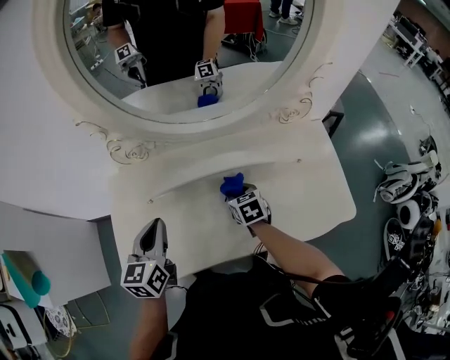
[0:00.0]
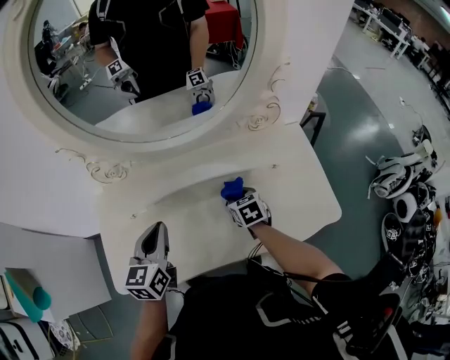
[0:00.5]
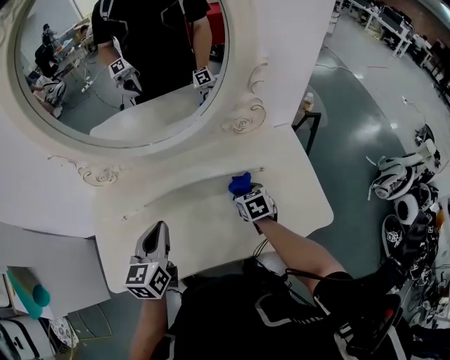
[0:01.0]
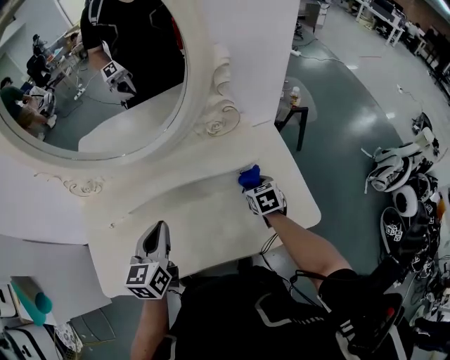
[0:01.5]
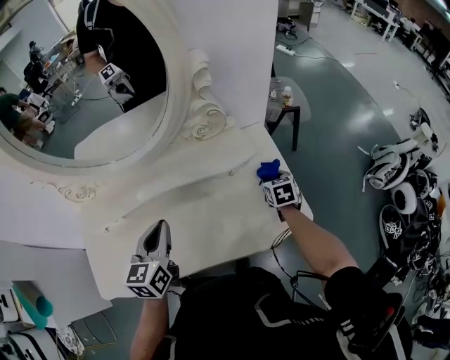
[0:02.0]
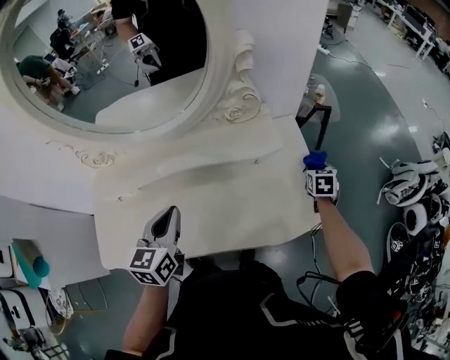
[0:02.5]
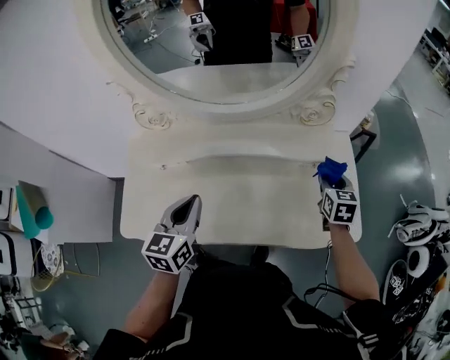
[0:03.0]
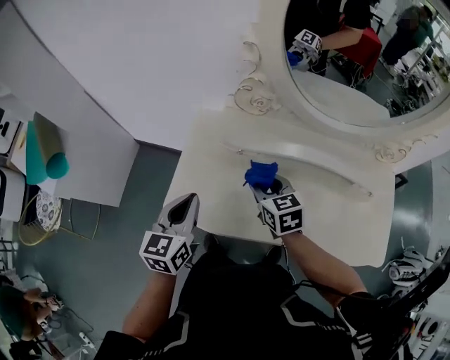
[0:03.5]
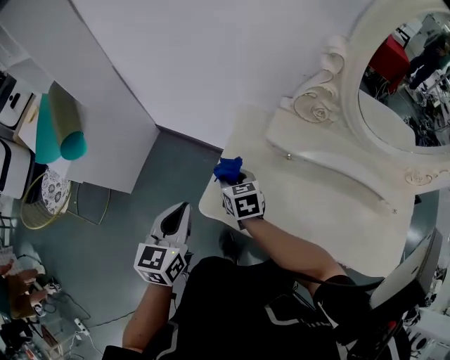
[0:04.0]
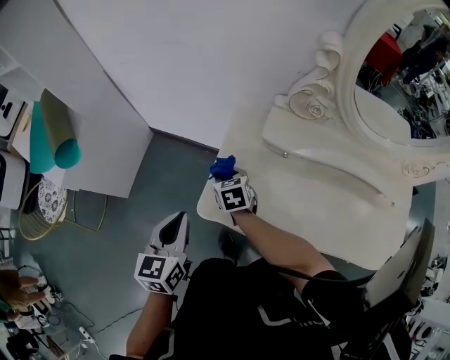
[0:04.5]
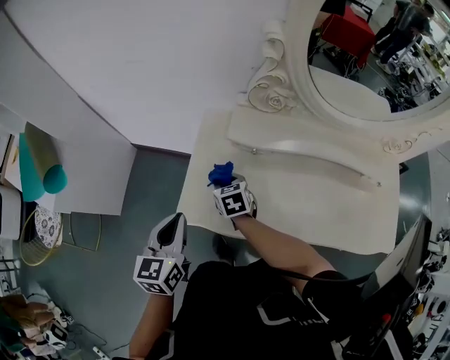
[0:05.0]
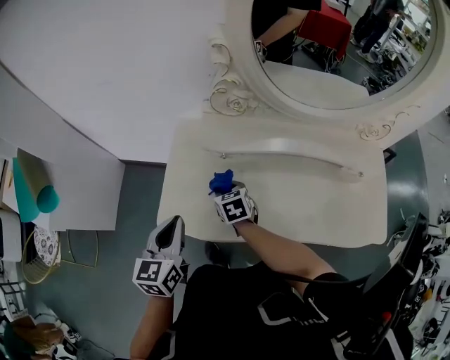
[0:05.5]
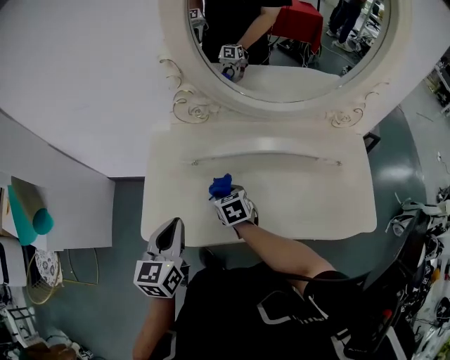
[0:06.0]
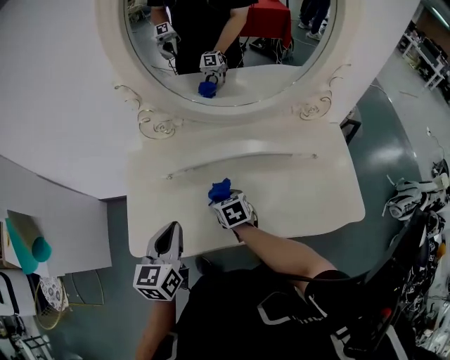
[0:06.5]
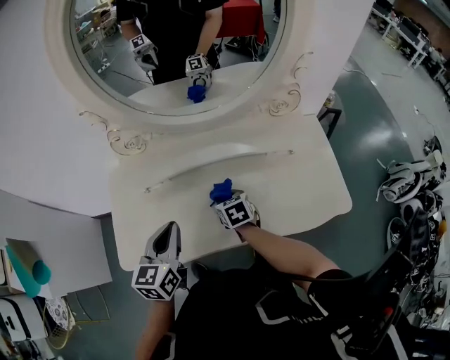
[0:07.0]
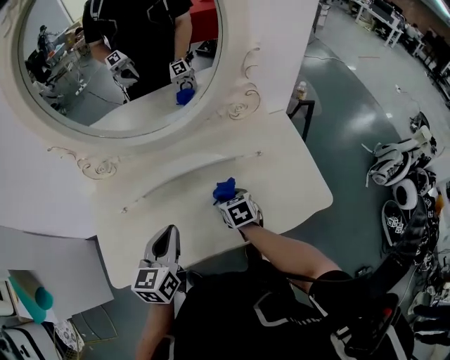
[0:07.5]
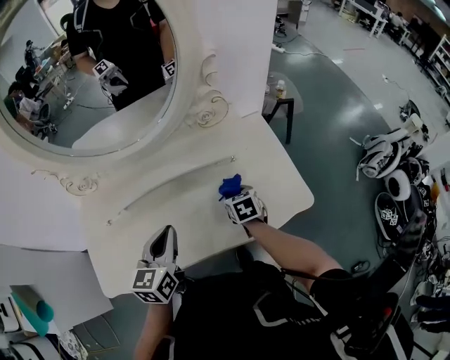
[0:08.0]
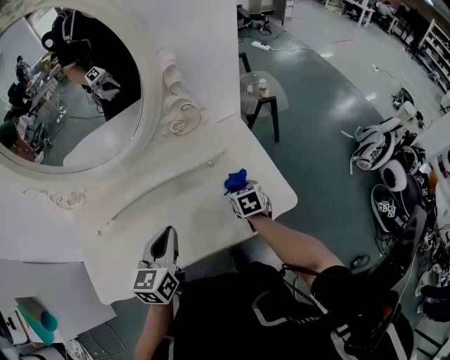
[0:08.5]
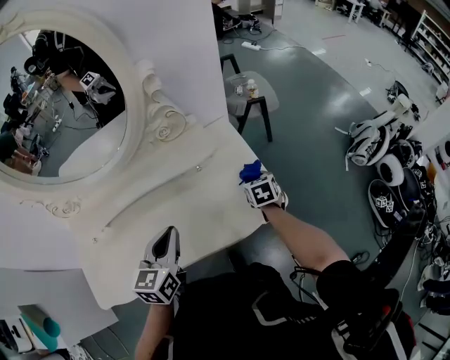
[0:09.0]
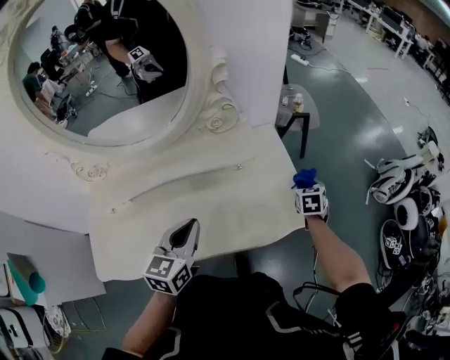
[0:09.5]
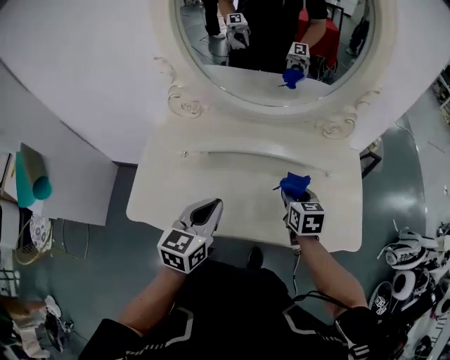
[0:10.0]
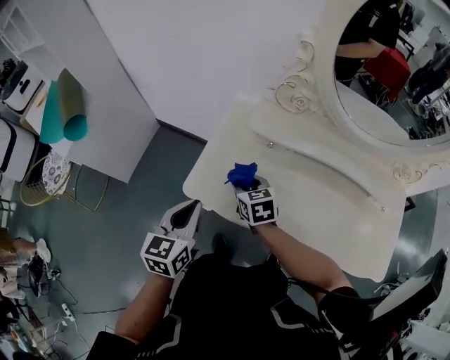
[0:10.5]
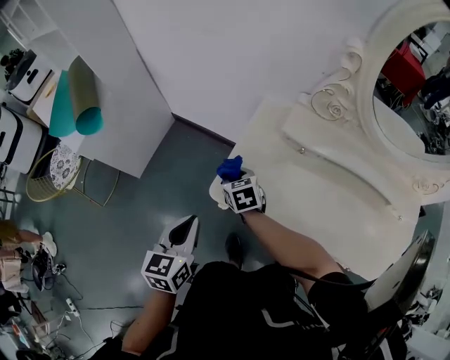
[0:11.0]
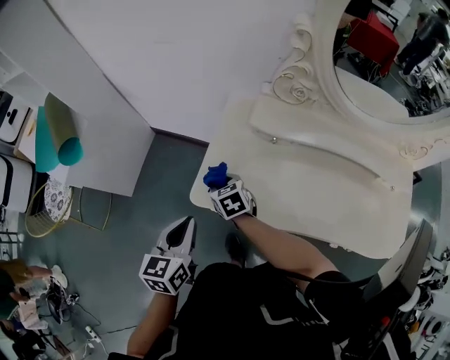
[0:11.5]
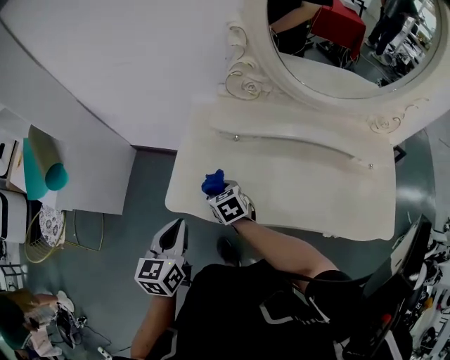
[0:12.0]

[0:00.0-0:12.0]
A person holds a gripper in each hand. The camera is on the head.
0:00.0 to 0:02.0: The left gripper shifts some 25 cm to the right, while the right gripper shifts about 40 cm to the right.
0:02.0 to 0:04.0: The two grippers travel together, roughly 70 cm. The right gripper changes its angle by approximately 50 degrees, while the left gripper rotates approximately 30 degrees.
0:04.0 to 0:06.0: Both grippers move to the right, about 25 cm.
0:06.0 to 0:08.0: The grippers both shift to the right by roughly 35 cm. The right gripper rotates some 30 degrees. Meanwhile the left gripper changes its angle by approximately 20 degrees.
0:08.0 to 0:10.0: The left gripper ends up roughly 10 cm from where it was.
0:10.0 to 0:12.0: The right gripper ends up about 50 cm from where it was, and rotates approximately 30 degrees; the left gripper changes place by about 30 cm, and turns by approximately 20 degrees.

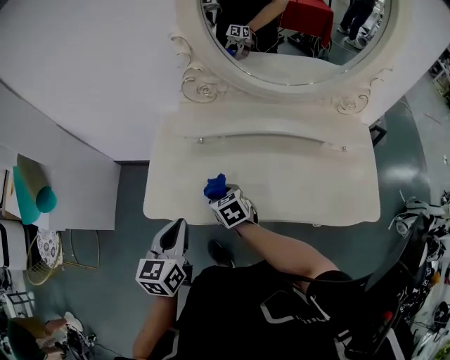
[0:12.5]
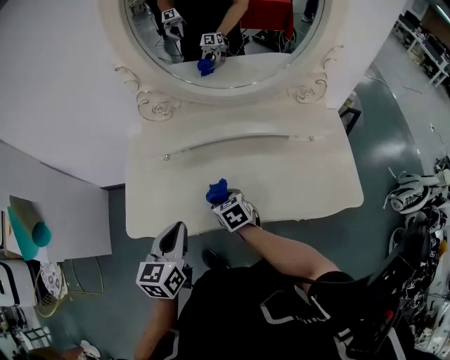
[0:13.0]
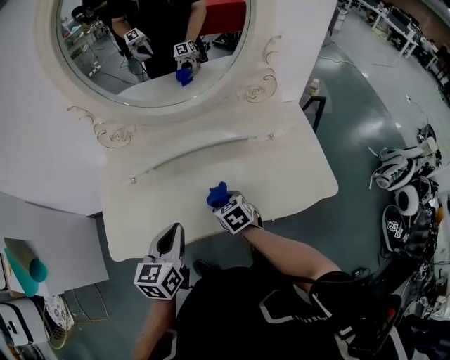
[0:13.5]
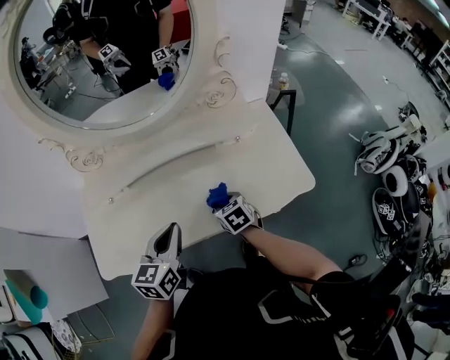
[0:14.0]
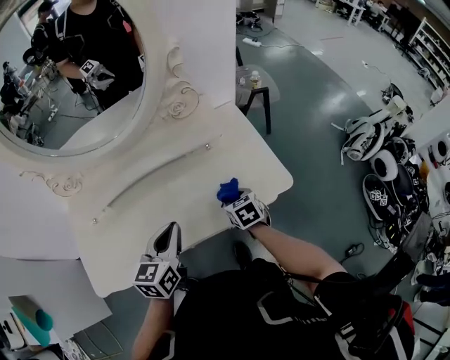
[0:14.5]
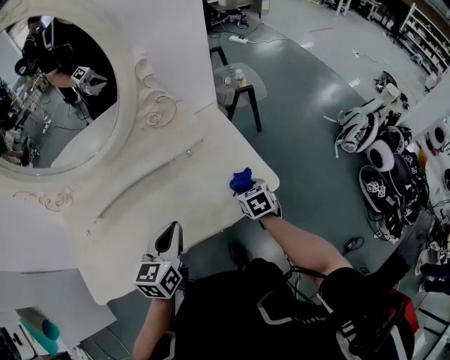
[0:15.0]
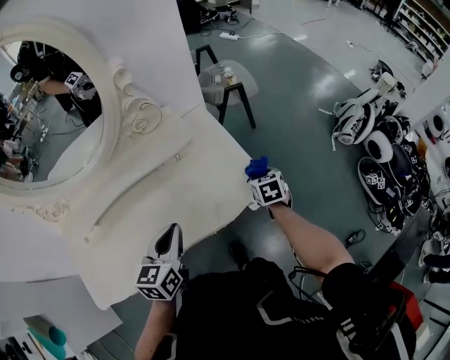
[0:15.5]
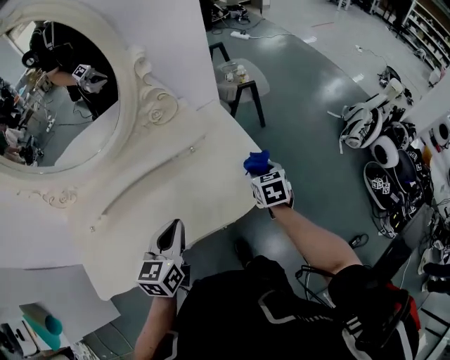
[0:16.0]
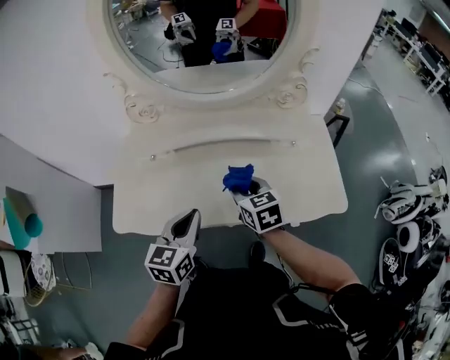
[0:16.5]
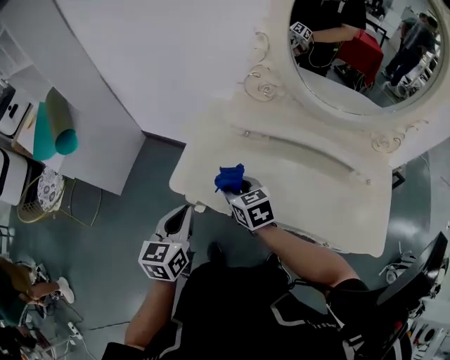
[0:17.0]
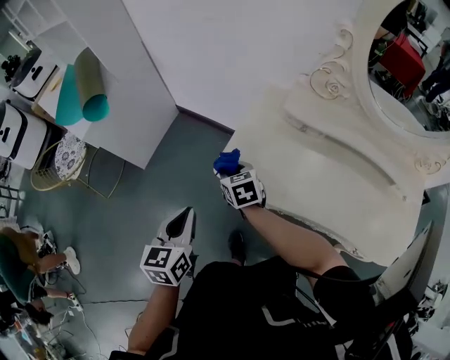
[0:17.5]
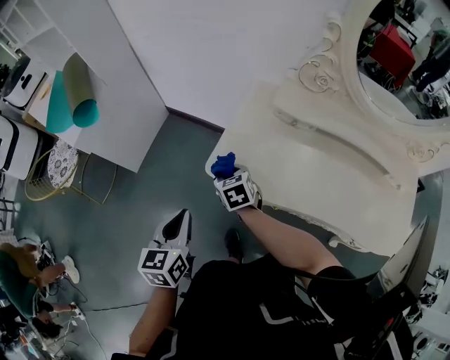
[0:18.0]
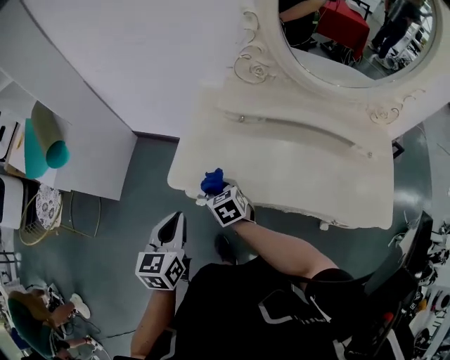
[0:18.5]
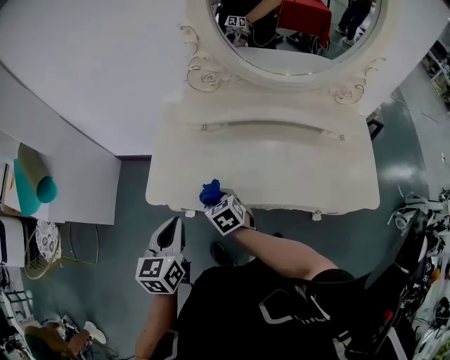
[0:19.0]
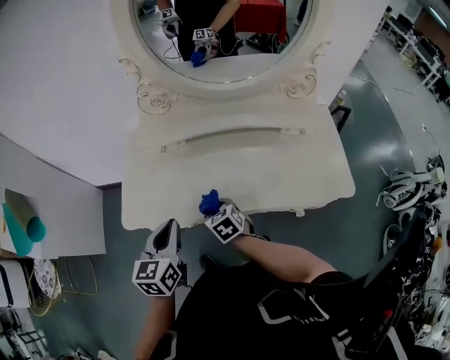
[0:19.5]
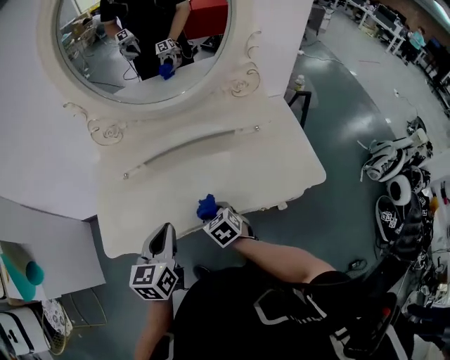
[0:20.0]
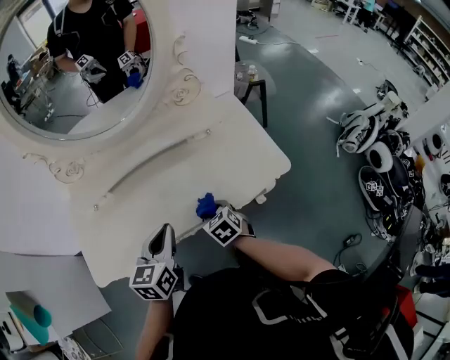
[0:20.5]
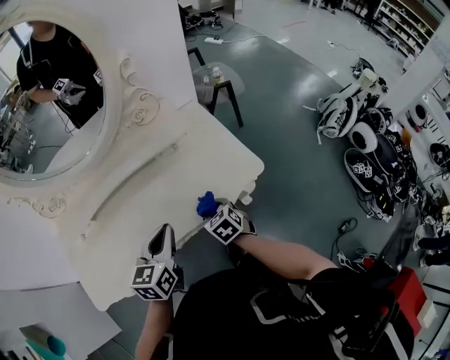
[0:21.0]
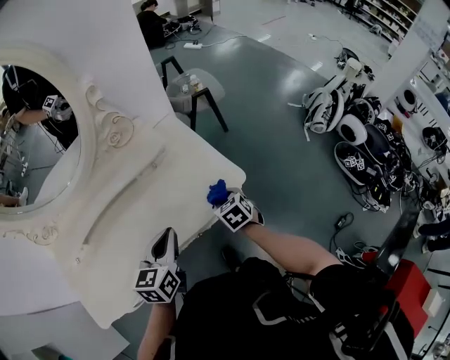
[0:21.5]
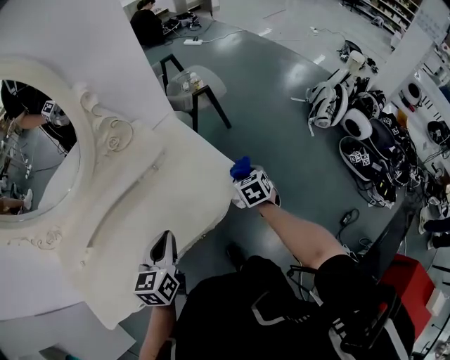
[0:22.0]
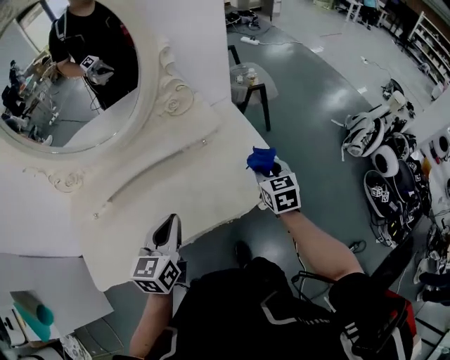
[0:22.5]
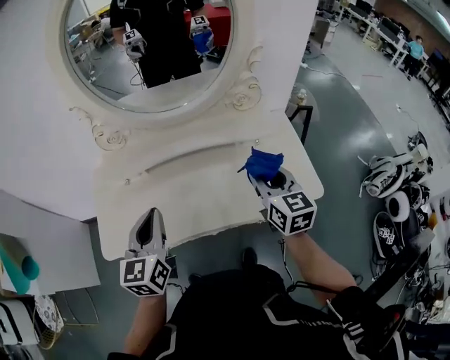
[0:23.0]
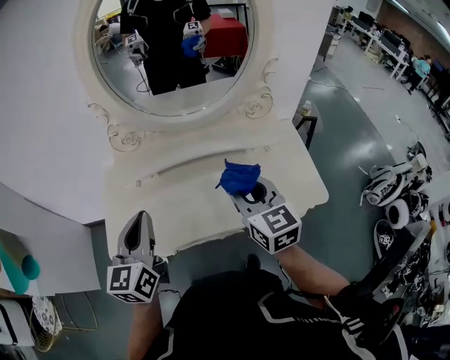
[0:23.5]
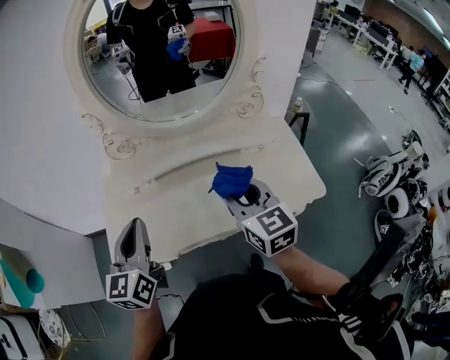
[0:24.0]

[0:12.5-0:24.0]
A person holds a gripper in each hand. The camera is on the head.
0:12.5 to 0:14.5: The left gripper moves some 35 cm, and changes its angle by about 30 degrees; the right gripper shifts by roughly 50 cm, and turns by roughly 40 degrees.
0:14.5 to 0:16.5: The left gripper ends up roughly 15 cm from where it was. Meanwhile the right gripper shifts by approximately 25 cm, and rotates some 20 degrees.
0:16.5 to 0:18.5: The left gripper shifts by approximately 35 cm, and swivels roughly 30 degrees. Meanwhile the right gripper moves approximately 40 cm, and changes its angle by roughly 30 degrees.
0:18.5 to 0:20.0: Both grippers move to the right, approximately 30 cm. The right gripper changes its angle by roughly 20 degrees, while the left gripper swivels roughly 30 degrees.
0:20.0 to 0:22.0: The left gripper shifts by approximately 30 cm, and changes its angle by roughly 30 degrees; the right gripper changes place by roughly 50 cm, and swivels roughly 40 degrees.
0:22.0 to 0:24.0: The left gripper moves about 40 cm, and rotates some 40 degrees, while the right gripper changes place by some 50 cm, and angles its fingers upward, by some 40 degrees.

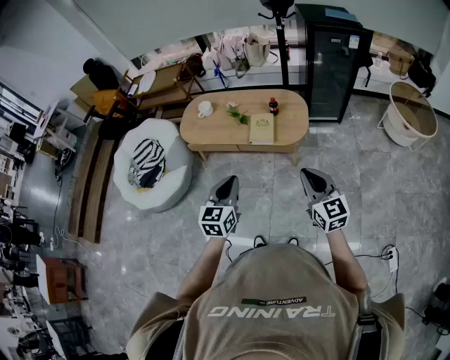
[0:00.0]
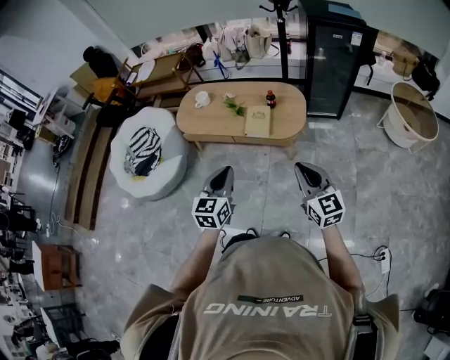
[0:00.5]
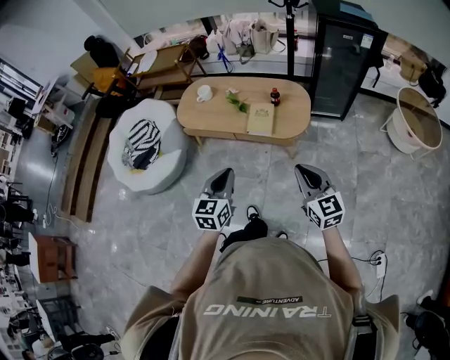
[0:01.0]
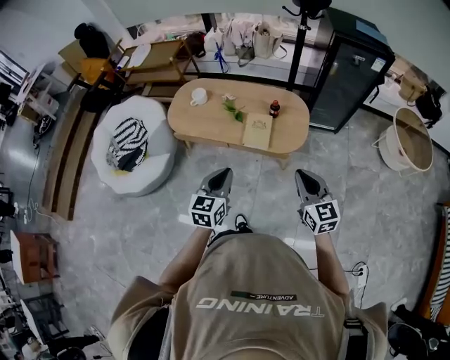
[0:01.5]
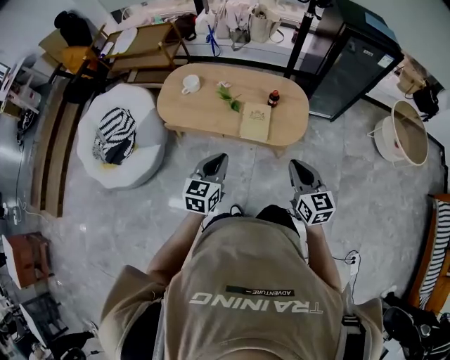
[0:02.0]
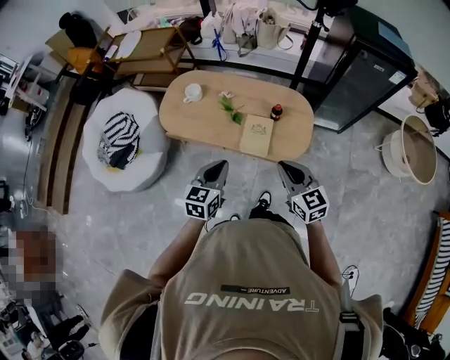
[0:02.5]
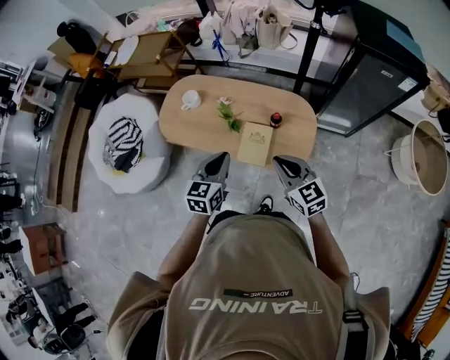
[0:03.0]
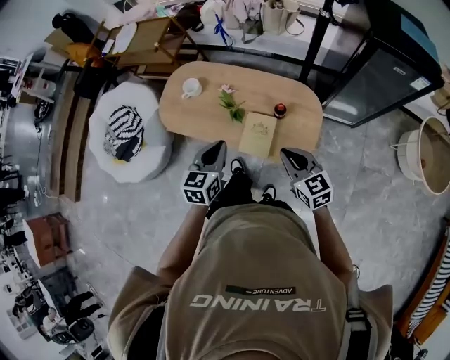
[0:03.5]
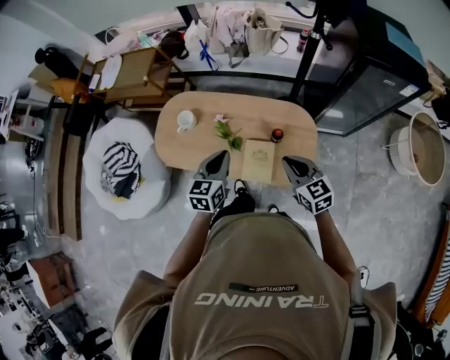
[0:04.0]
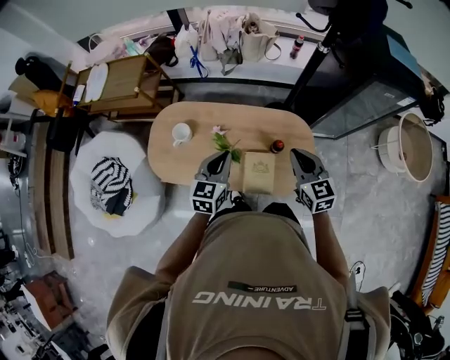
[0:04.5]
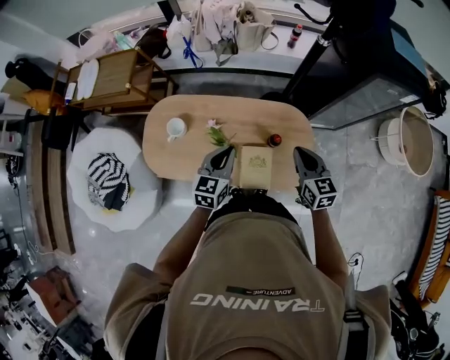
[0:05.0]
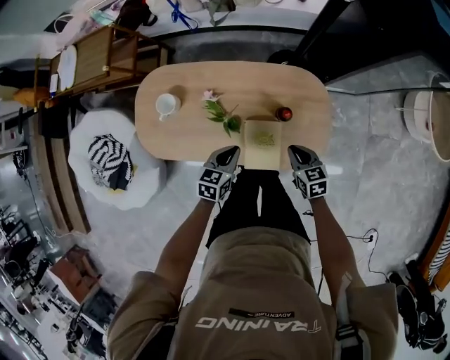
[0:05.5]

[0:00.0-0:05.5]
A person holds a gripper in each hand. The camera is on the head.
0:00.0 to 0:02.0: The two grippers go about 20 cm forward.
0:02.0 to 0:03.5: The right gripper heads forward, covering some 20 cm, and turns by about 20 degrees. Meanwhile the left gripper goes approximately 20 cm forward and to the right.
0:03.5 to 0:05.5: The grippers both shift downward and forward by some 25 cm. The right gripper swivels roughly 30 degrees. Meanwhile the left gripper turns by some 30 degrees.
